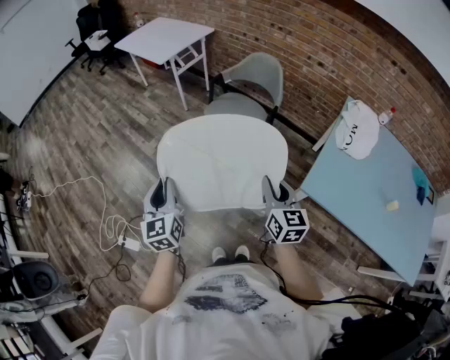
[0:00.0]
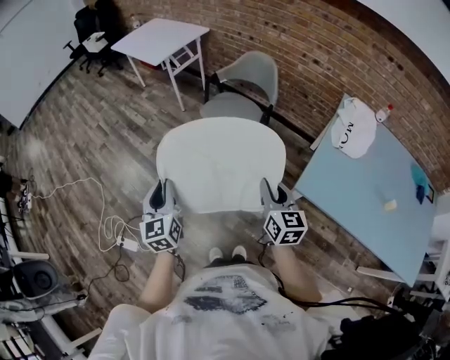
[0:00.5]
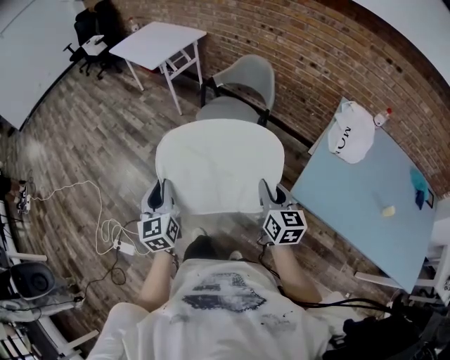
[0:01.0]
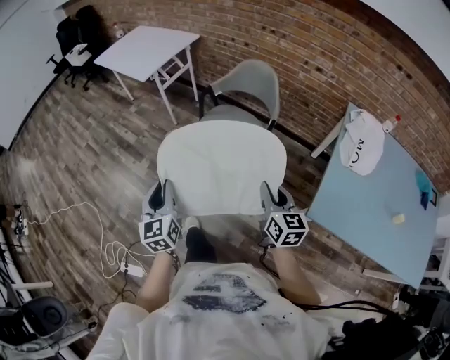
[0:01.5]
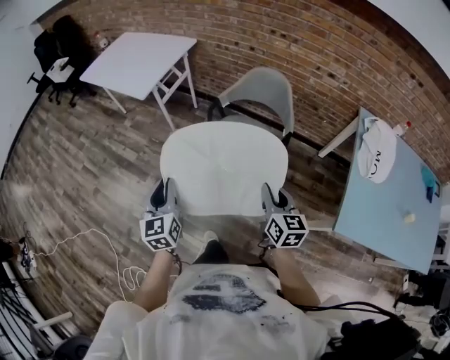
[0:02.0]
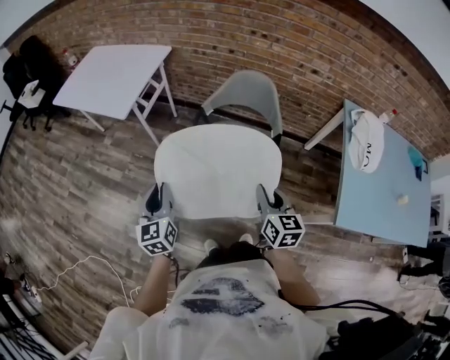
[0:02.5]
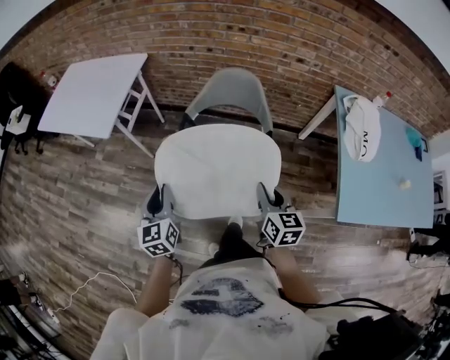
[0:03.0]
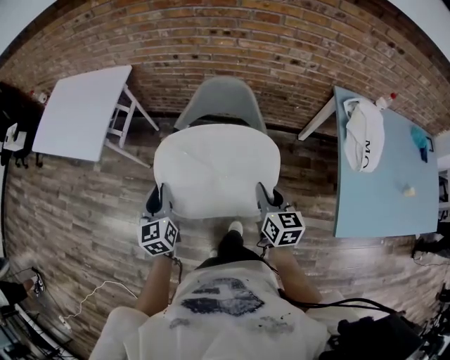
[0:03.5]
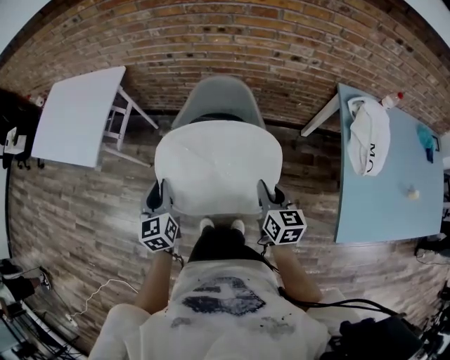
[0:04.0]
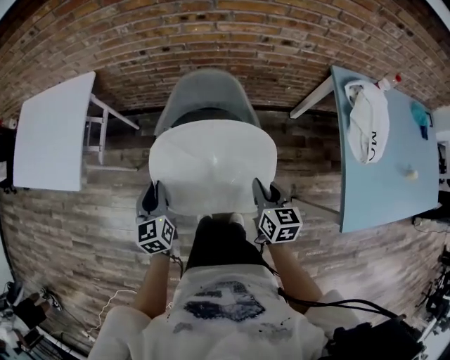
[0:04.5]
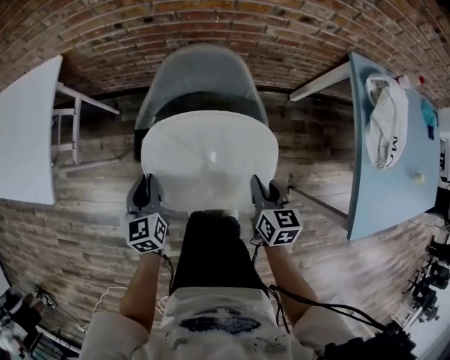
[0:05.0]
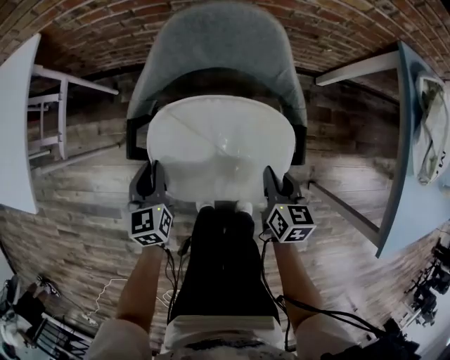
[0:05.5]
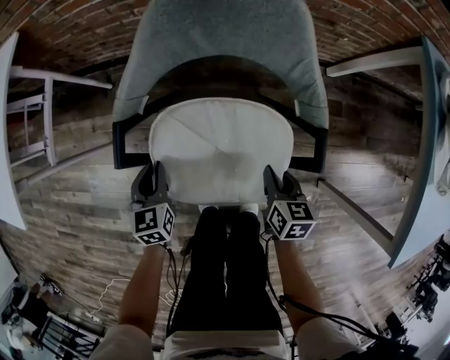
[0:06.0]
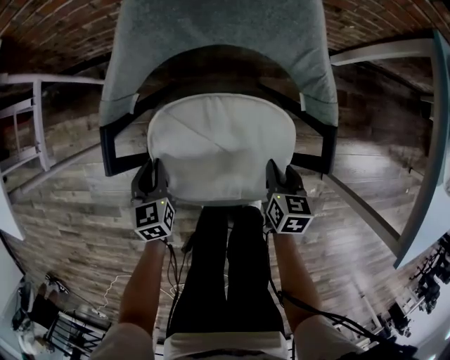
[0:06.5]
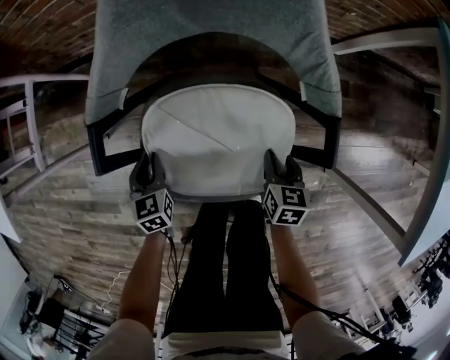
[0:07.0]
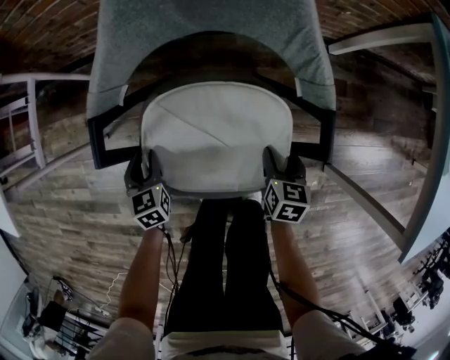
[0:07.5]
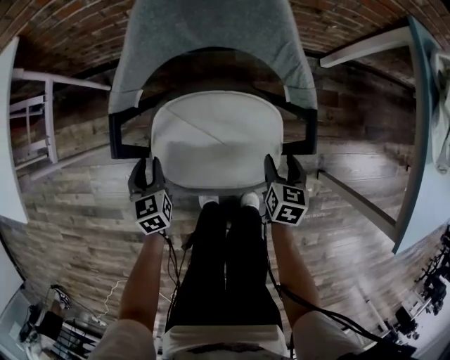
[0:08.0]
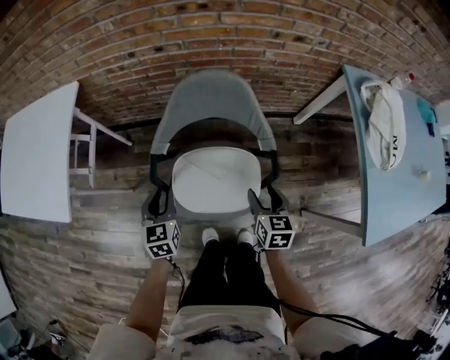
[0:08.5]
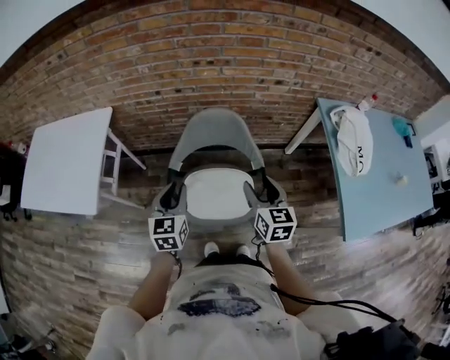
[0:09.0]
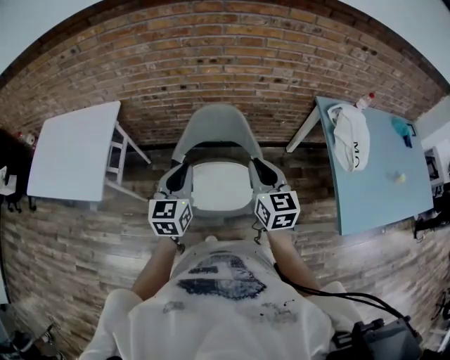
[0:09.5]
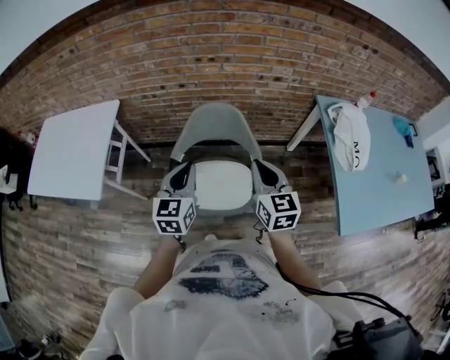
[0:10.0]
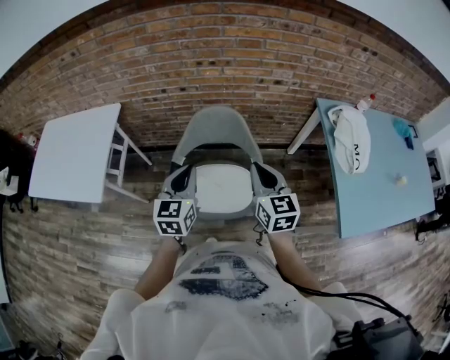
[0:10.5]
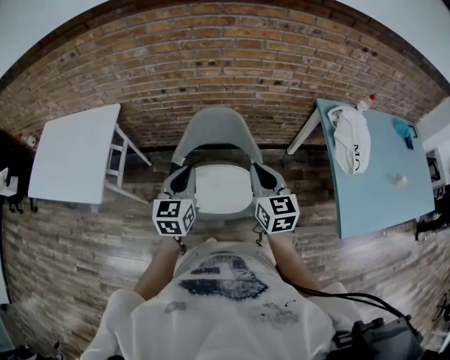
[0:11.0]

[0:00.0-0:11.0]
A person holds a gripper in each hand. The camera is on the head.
0:00.0 to 0:02.0: Both grippers travel together forward, approximately 35 cm.
0:02.0 to 0:03.5: The right gripper shifts approximately 20 cm forward and to the right, while the left gripper is displaced forward by approximately 25 cm.
0:03.5 to 0:05.5: The two grippers go roughly 40 cm downward and forward. The right gripper rotates about 20 degrees.
0:05.5 to 0:07.5: Both grippers move downward, some 20 cm. The right gripper opens up.
0:07.5 to 0:09.0: The grippers both shift upward by about 50 cm. The right gripper turns by roughly 30 degrees. The left gripper rotates approximately 30 degrees.
0:09.0 to 0:11.0: The right gripper goes some 10 cm upward, and closes up, while the left gripper goes approximately 10 cm upward and to the right.

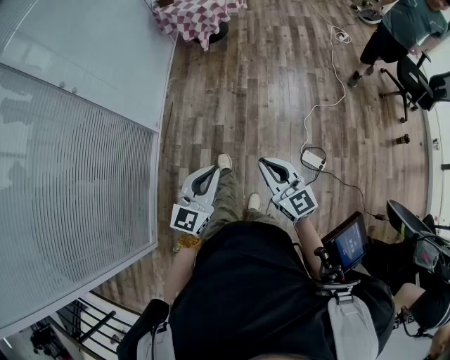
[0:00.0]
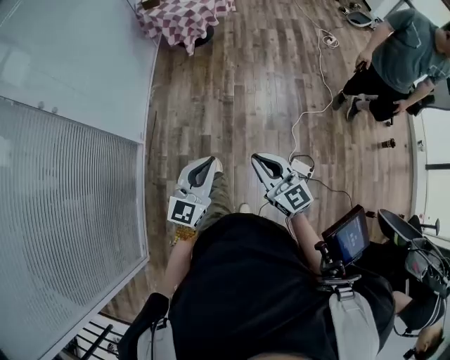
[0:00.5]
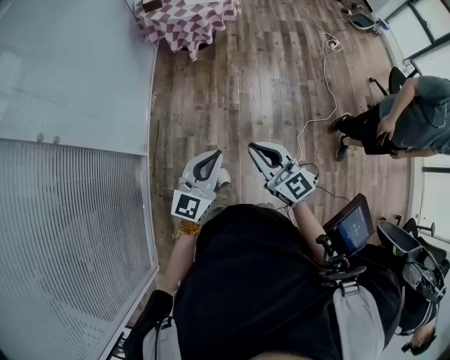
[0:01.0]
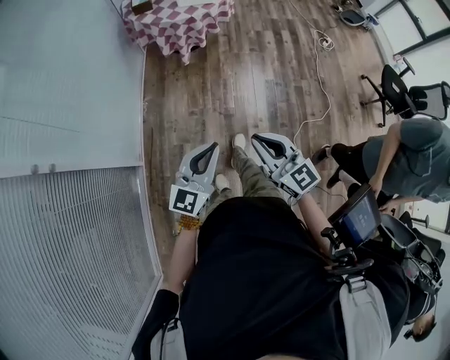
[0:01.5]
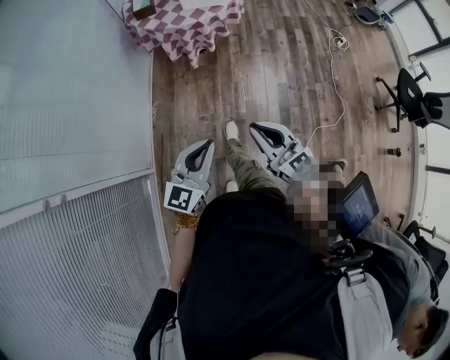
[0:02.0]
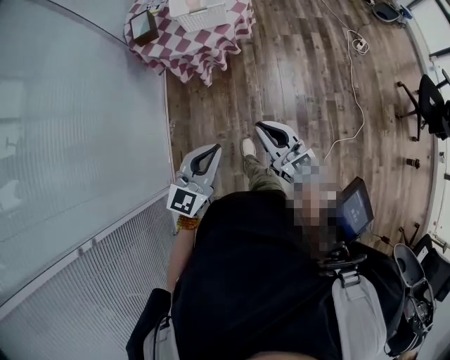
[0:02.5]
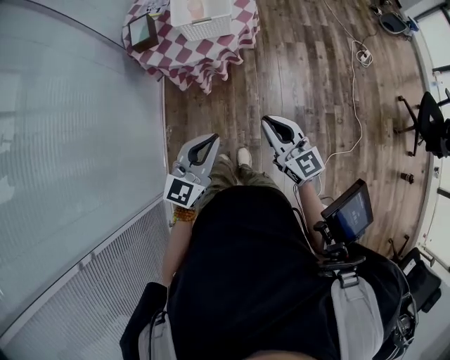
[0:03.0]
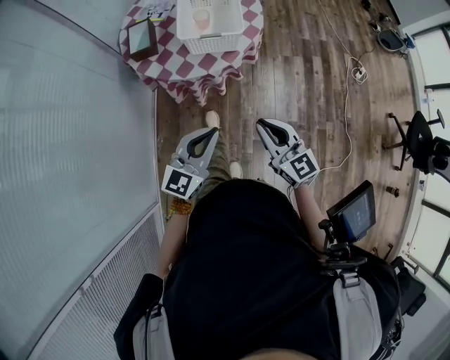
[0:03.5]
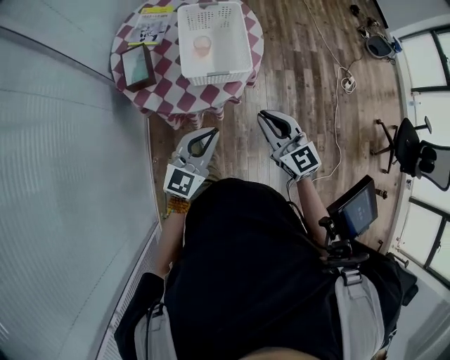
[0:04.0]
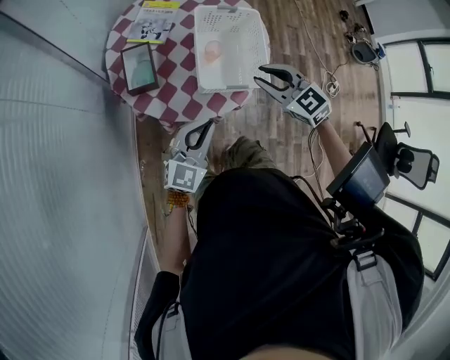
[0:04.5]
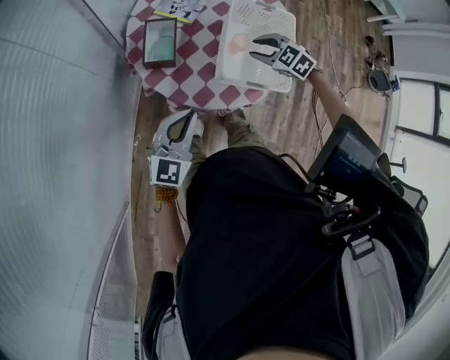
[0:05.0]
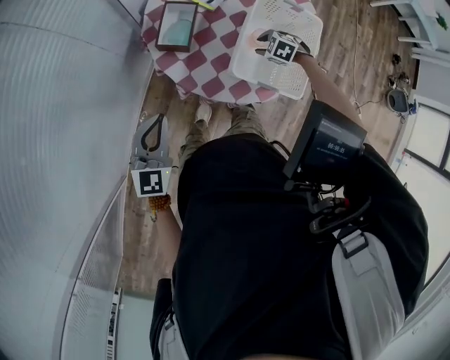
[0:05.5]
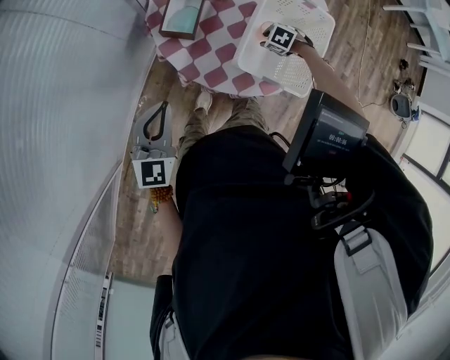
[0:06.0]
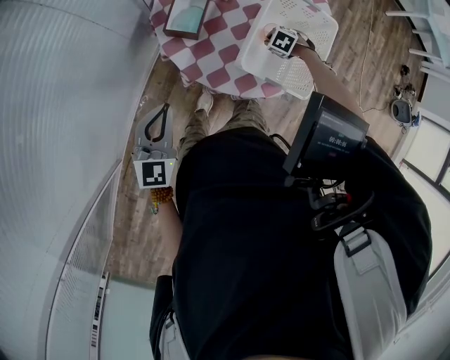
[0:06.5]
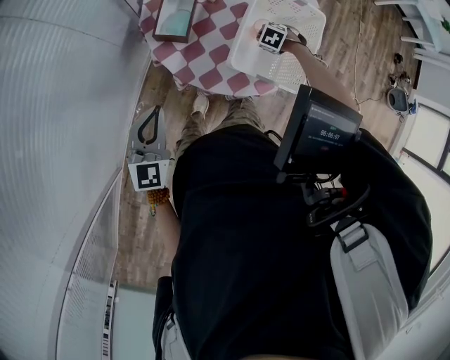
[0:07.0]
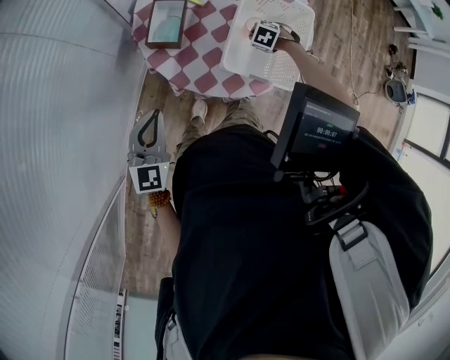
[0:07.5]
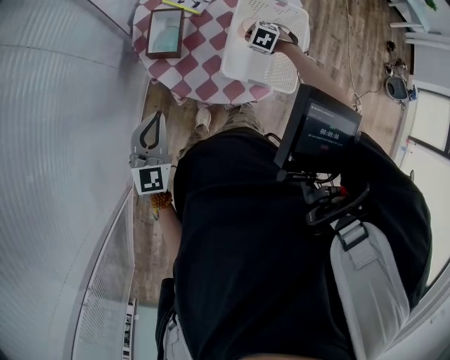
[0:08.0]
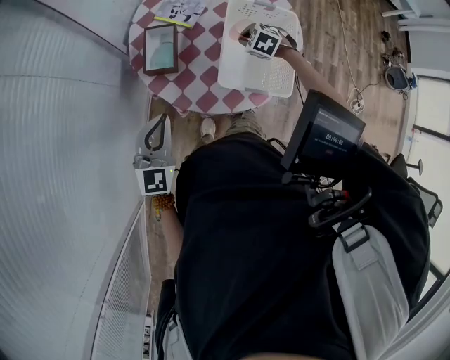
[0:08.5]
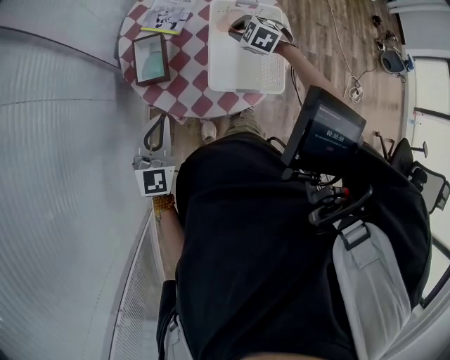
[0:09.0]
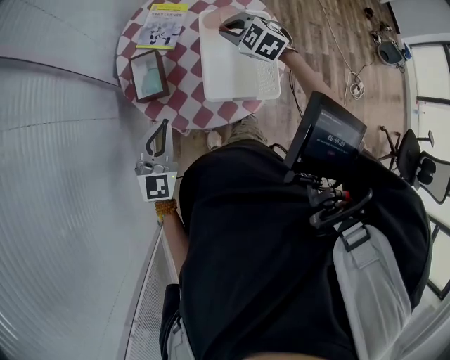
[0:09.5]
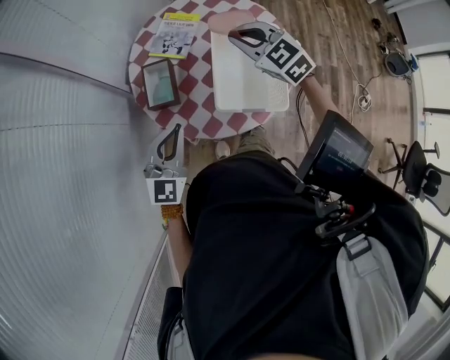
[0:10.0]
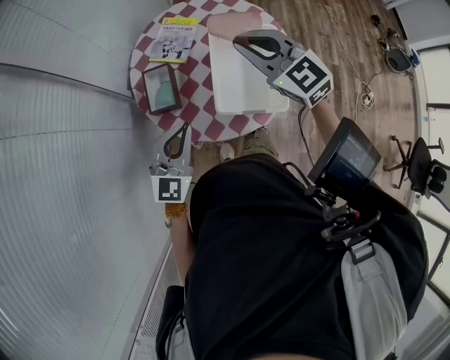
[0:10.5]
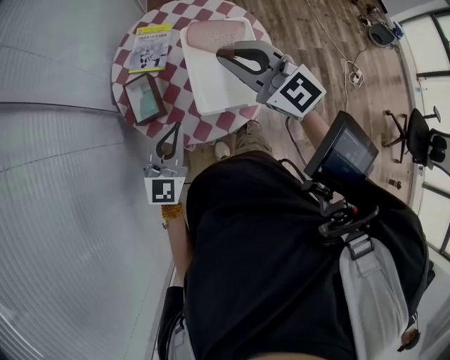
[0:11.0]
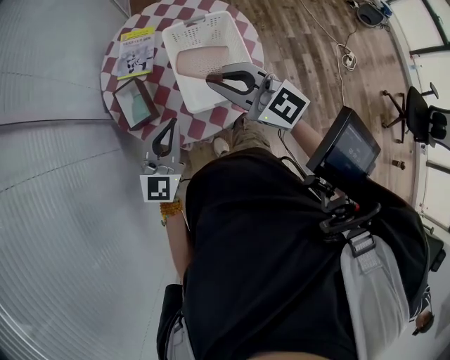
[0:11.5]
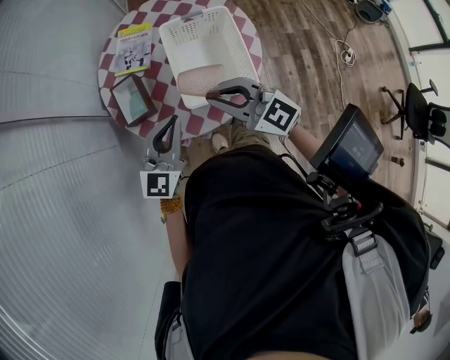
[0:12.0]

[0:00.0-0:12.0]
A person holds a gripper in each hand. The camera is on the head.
0:00.0 to 0:02.0: The two grippers travel together, forward, about 60 cm.
0:02.0 to 0:04.0: The pair of grippers is taken forward, some 60 cm.
0:04.0 to 0:06.0: The right gripper ends up about 50 cm from where it was, tilts its fingers roughly 70 degrees downward, and opens up. The left gripper moves some 25 cm, and swivels approximately 50 degrees.
0:06.0 to 0:08.0: The right gripper closes up.
0:08.0 to 0:10.0: The right gripper shifts some 30 cm upward, and tilts its fingers roughly 50 degrees upward. The left gripper shifts by about 10 cm, and turns by some 20 degrees.
0:10.0 to 0:12.0: The left gripper heads to the right, covering approximately 10 cm; the right gripper shifts approximately 20 cm backward, and changes its angle by some 30 degrees.

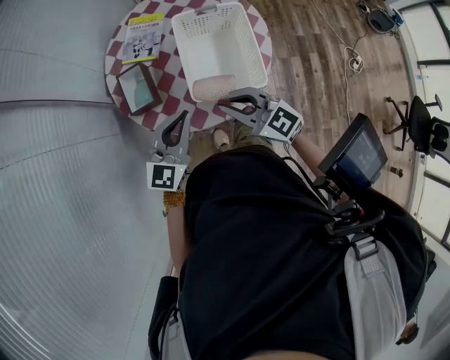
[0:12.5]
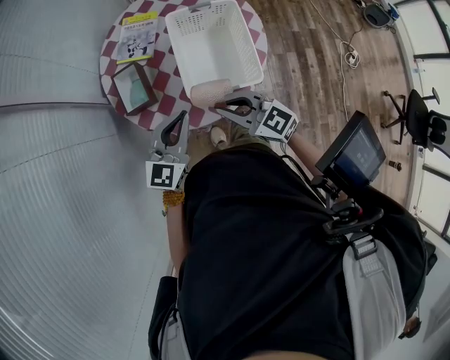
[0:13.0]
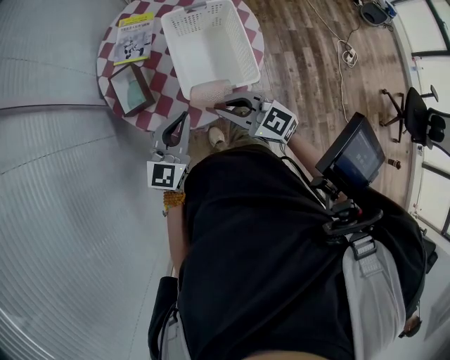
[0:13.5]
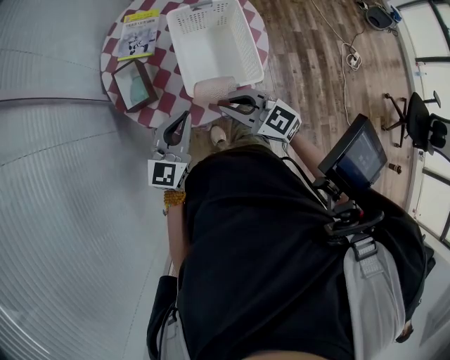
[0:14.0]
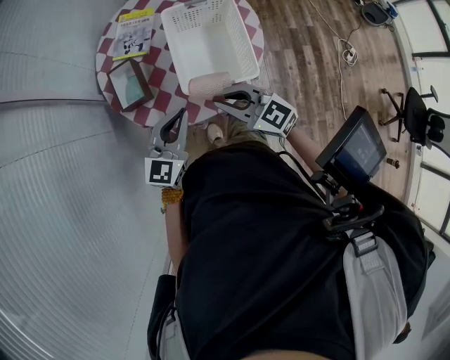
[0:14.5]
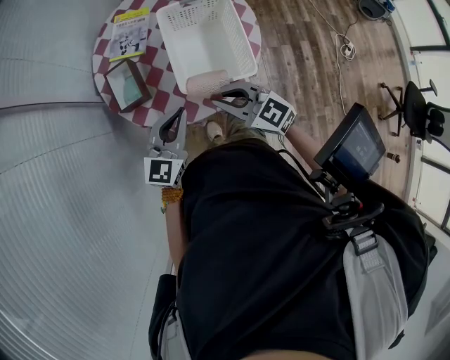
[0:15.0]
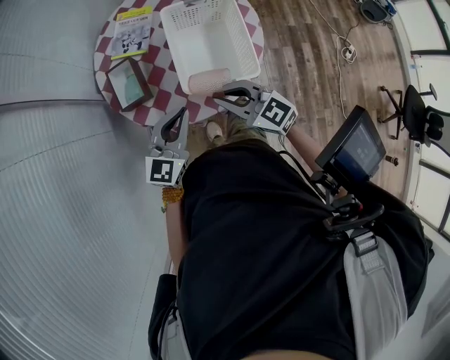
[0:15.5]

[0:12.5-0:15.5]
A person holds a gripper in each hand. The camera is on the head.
0:12.5 to 0:14.0: There are only small adjustments of the grippers.
0:14.0 to 0:15.5: Neither gripper changes place.

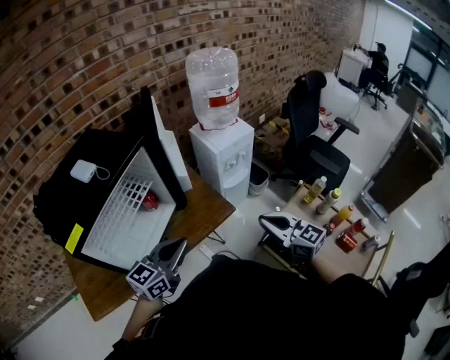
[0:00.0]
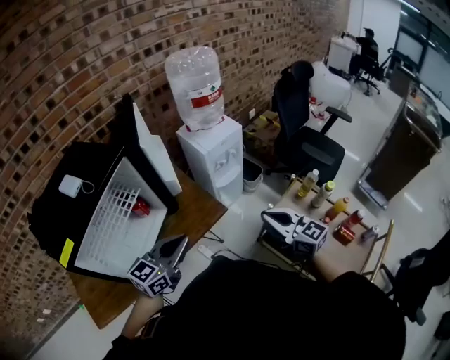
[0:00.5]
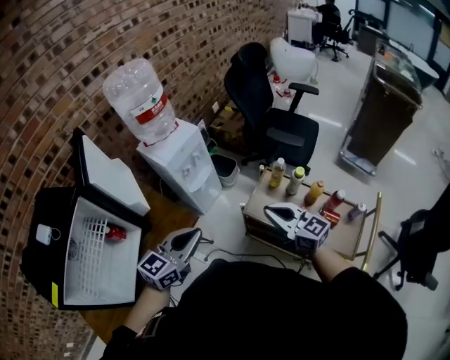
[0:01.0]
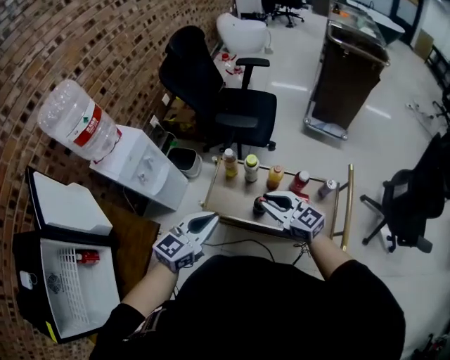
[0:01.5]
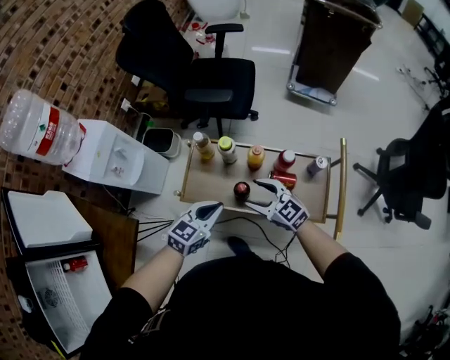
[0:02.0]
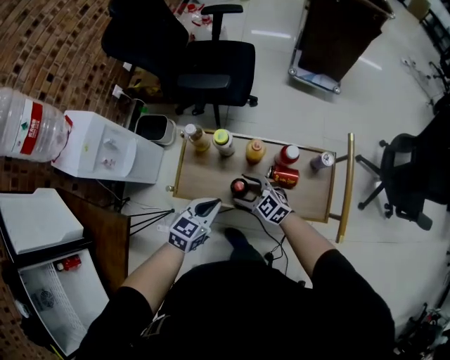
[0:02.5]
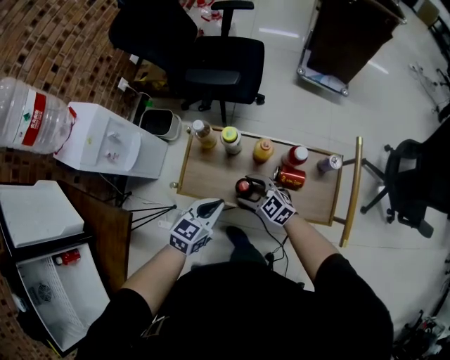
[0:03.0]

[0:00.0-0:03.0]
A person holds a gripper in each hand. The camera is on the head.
0:00.0 to 0:01.5: The left gripper moves about 50 cm, and rotates approximately 40 degrees. The right gripper moves some 40 cm, and swivels roughly 30 degrees.
0:01.5 to 0:03.0: The grippers both shift downward by roughly 25 cm. The right gripper turns by approximately 20 degrees, and opens.
